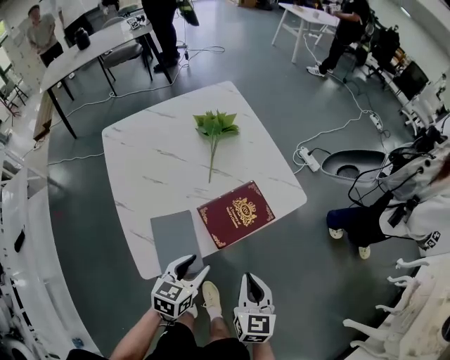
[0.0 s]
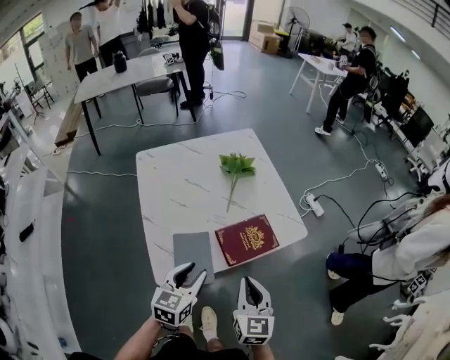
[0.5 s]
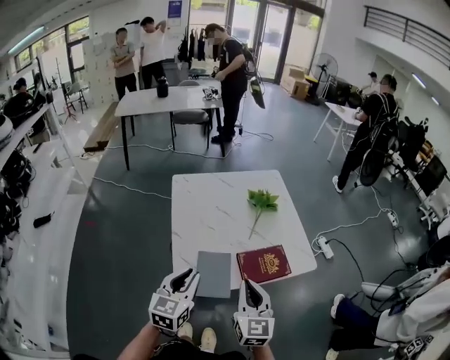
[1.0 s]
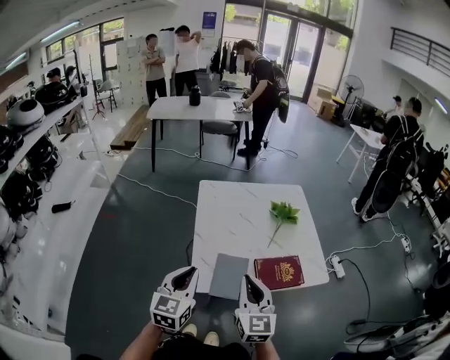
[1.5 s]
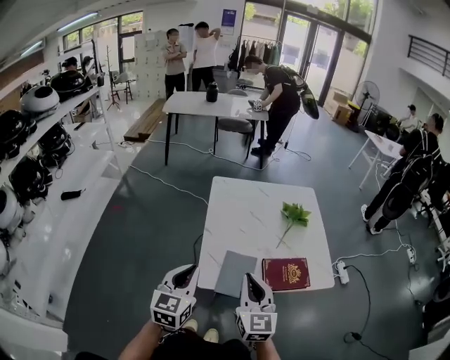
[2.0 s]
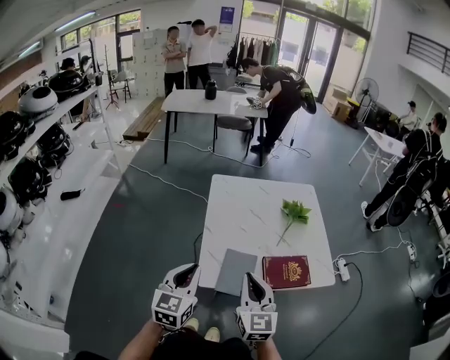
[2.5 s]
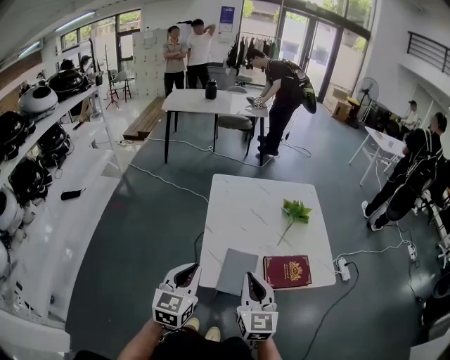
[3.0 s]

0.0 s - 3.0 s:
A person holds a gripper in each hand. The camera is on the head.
0.0 s - 1.5 s: The two grippers go about 25 cm upward. The left gripper swivels roughly 40 degrees, and closes its fingers. Meanwhile the right gripper rotates approximately 40 degrees.
1.5 s - 3.0 s: The grippers move only a little.

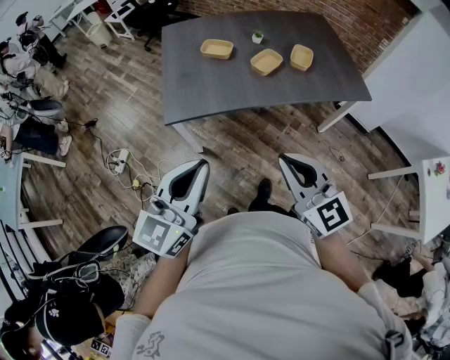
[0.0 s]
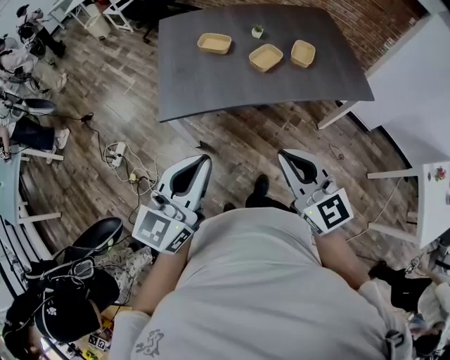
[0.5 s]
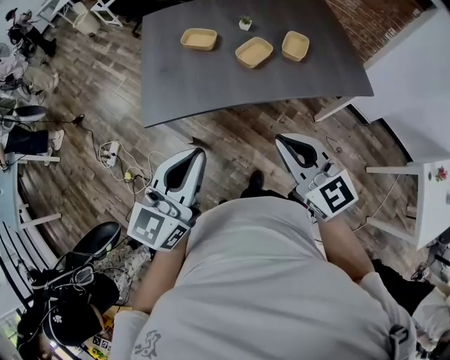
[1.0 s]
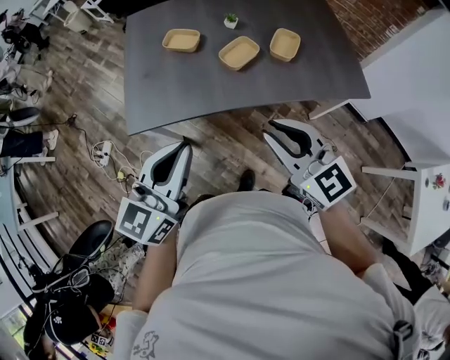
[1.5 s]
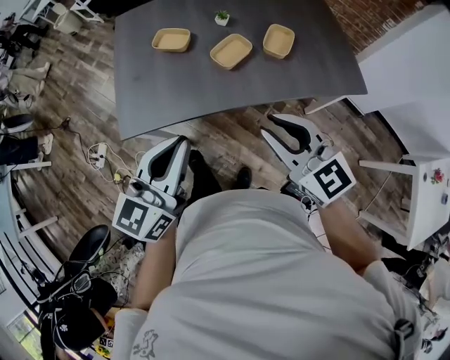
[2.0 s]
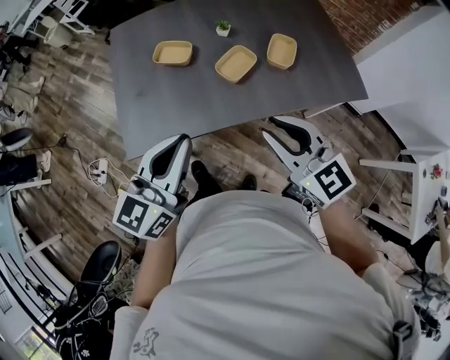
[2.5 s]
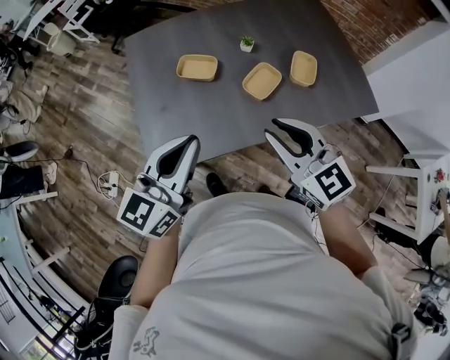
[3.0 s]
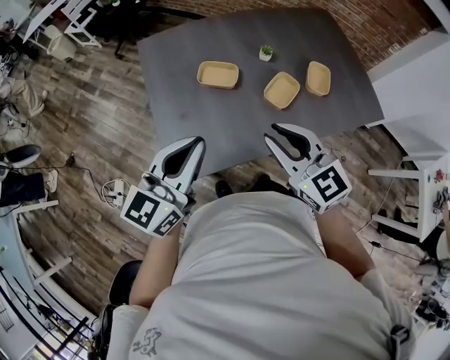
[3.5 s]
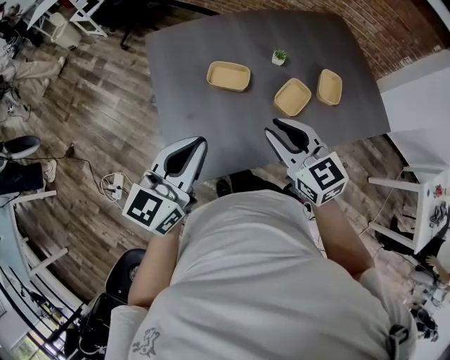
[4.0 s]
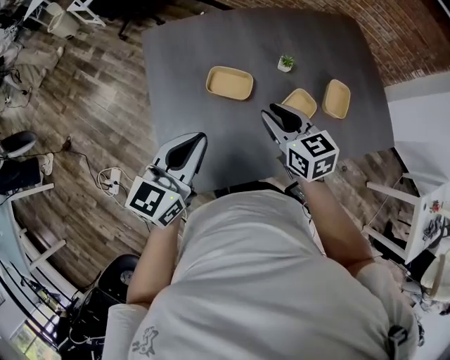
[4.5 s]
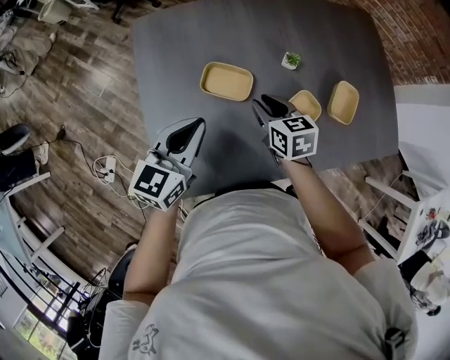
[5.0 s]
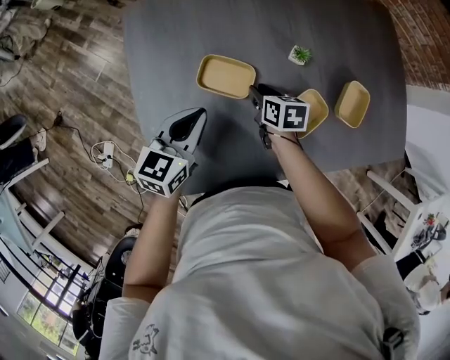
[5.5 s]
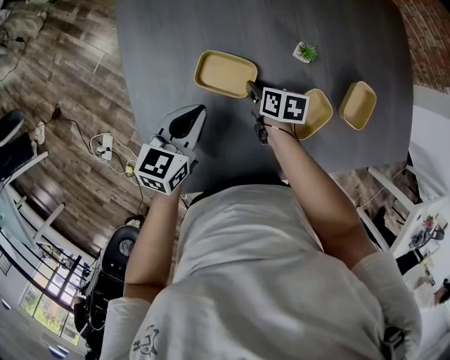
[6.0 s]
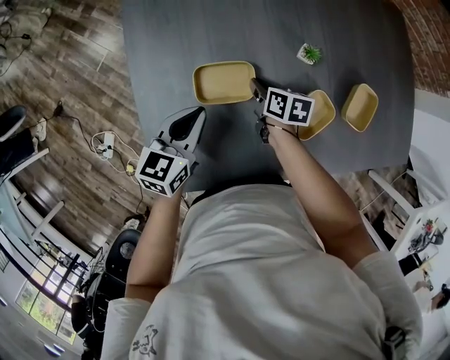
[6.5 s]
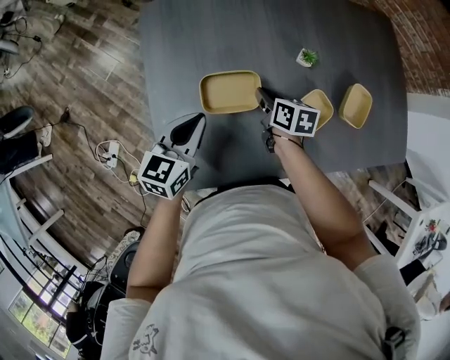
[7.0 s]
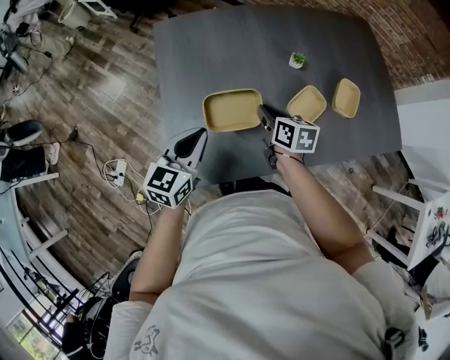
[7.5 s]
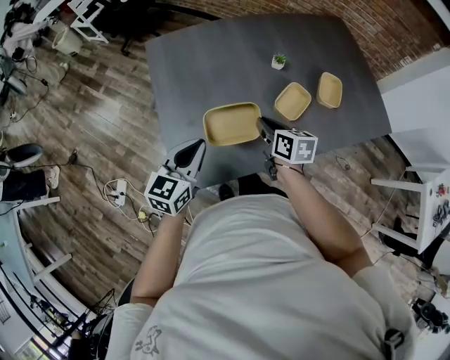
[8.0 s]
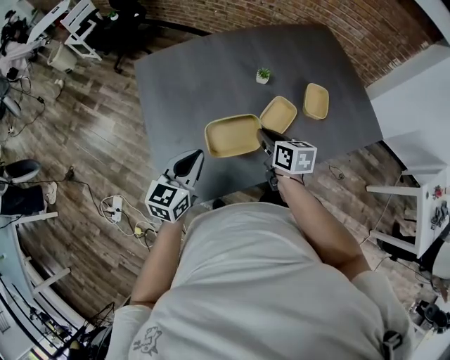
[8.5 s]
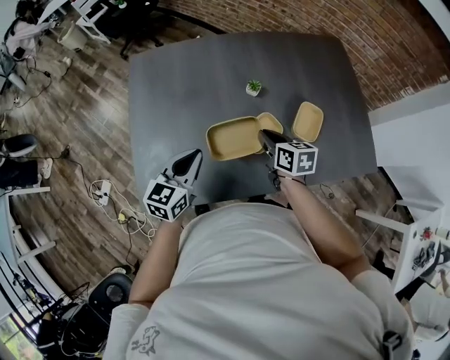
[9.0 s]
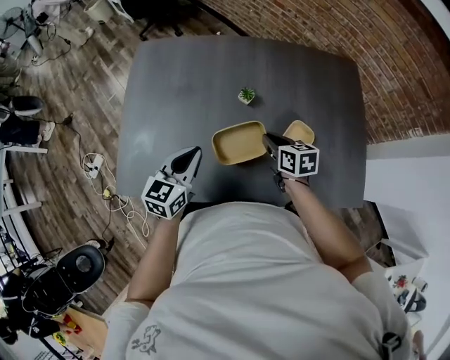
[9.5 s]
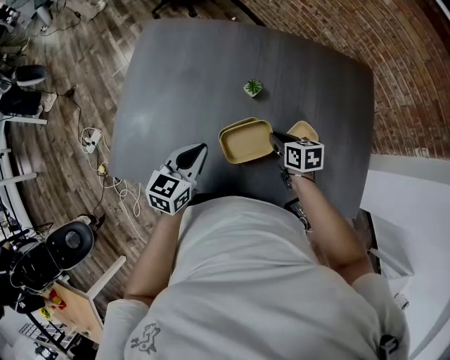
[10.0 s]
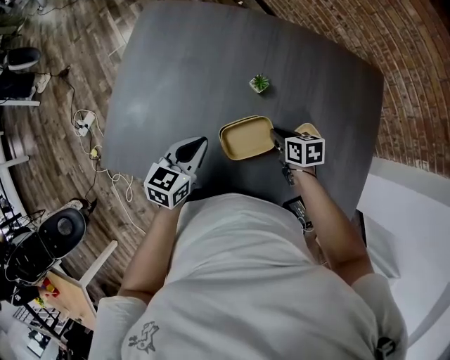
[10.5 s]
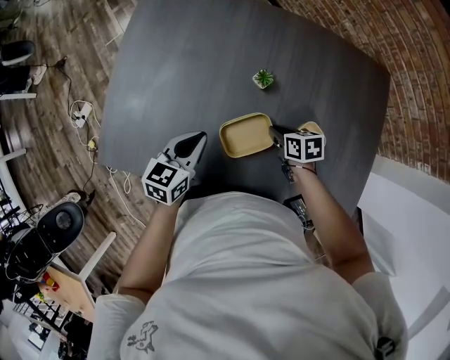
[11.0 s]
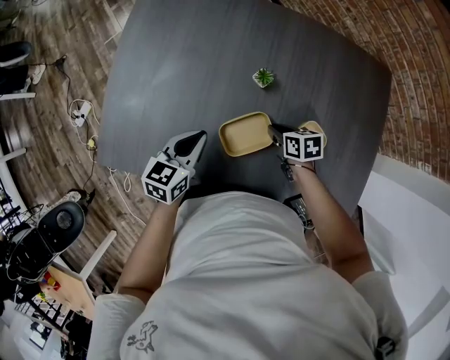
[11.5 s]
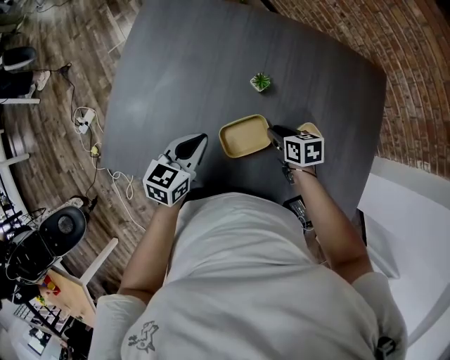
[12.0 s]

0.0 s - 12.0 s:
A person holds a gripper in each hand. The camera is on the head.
0.0 s - 2.0 s: Both grippers travel together forward and to the right, roughly 25 cm. The right gripper opens up.
2.0 s - 4.0 s: Both grippers travel together to the left and forward, about 30 cm.
4.0 s - 6.0 s: The two grippers go approximately 35 cm downward and forward. The left gripper rotates roughly 20 degrees. Meanwhile the right gripper rotates around the line of its fingers by approximately 50 degrees, clockwise from behind.
6.0 s - 8.0 s: Both grippers travel together backward and upward, approximately 25 cm. The right gripper changes its angle by some 20 degrees.
8.0 s - 10.0 s: The right gripper ends up approximately 30 cm from where it was, and changes its angle by roughly 30 degrees, while the left gripper moves approximately 30 cm, and turns by roughly 20 degrees.
10.0 s - 12.0 s: The right gripper moves approximately 5 cm, while the left gripper moves approximately 5 cm.

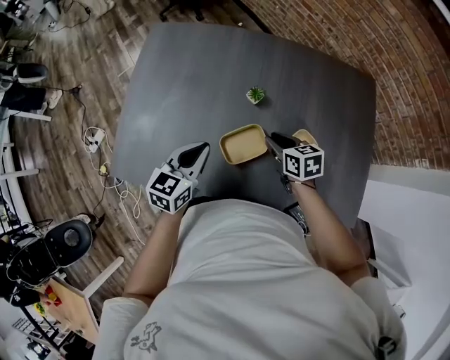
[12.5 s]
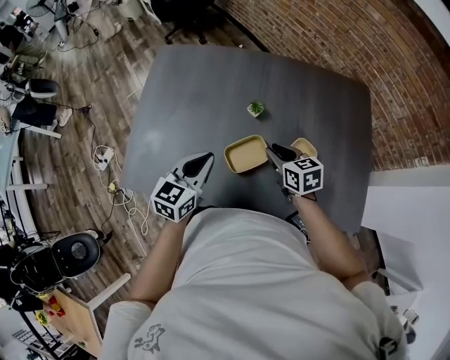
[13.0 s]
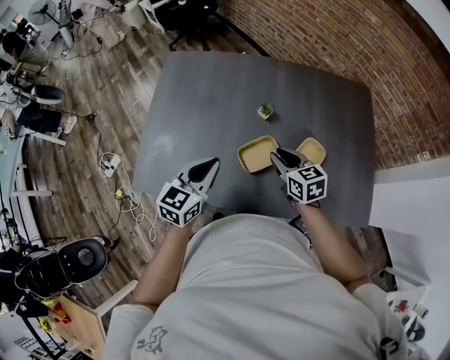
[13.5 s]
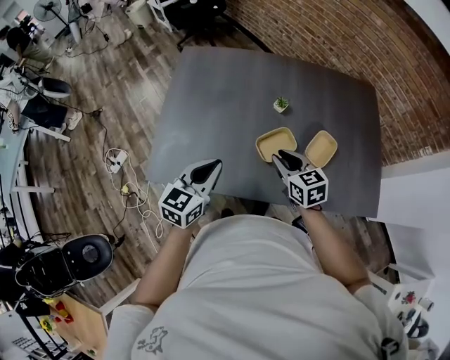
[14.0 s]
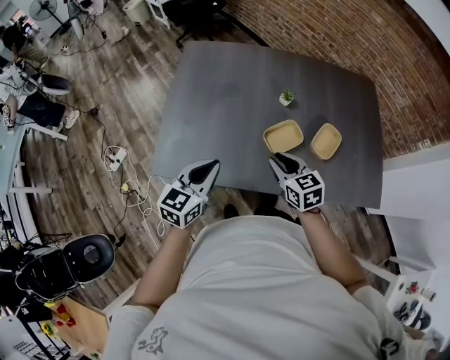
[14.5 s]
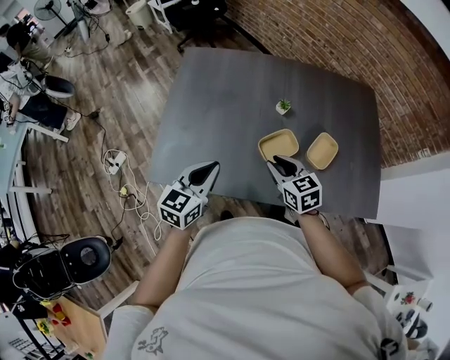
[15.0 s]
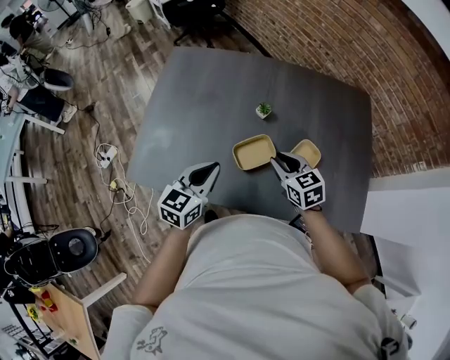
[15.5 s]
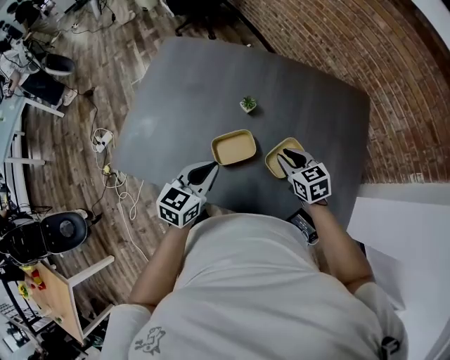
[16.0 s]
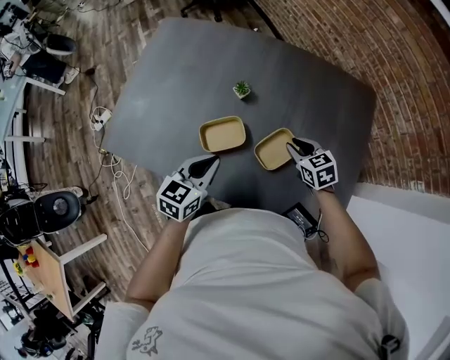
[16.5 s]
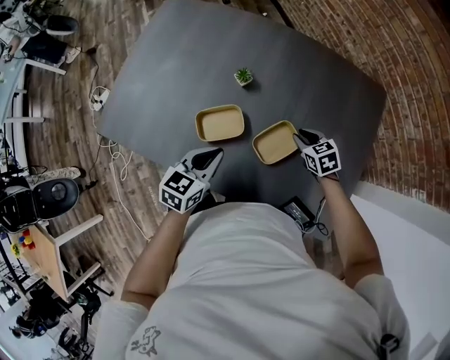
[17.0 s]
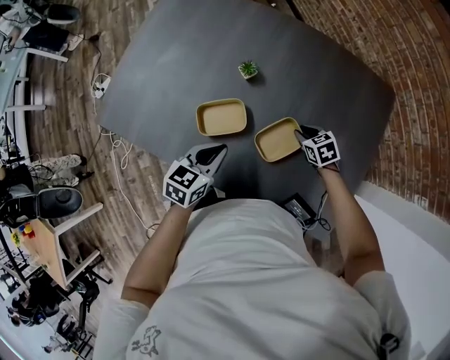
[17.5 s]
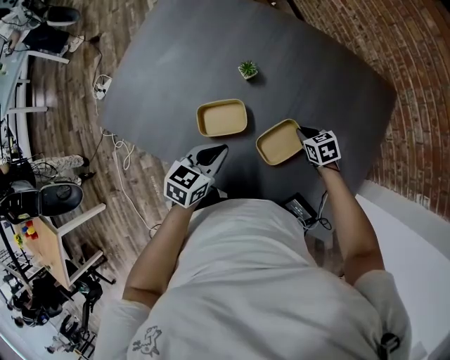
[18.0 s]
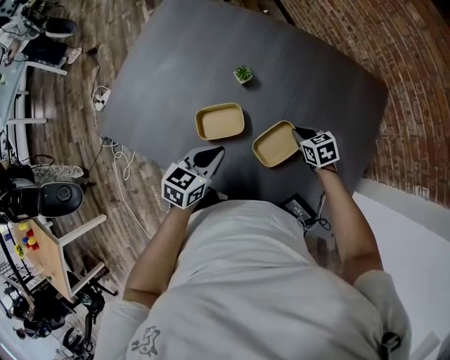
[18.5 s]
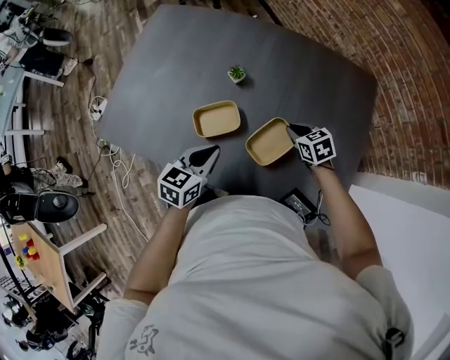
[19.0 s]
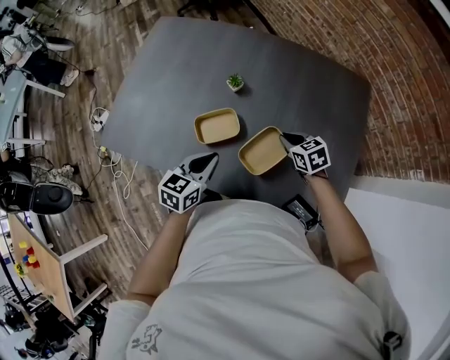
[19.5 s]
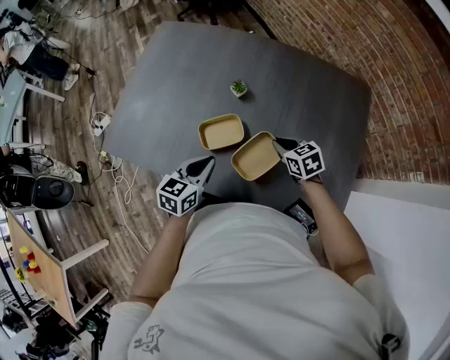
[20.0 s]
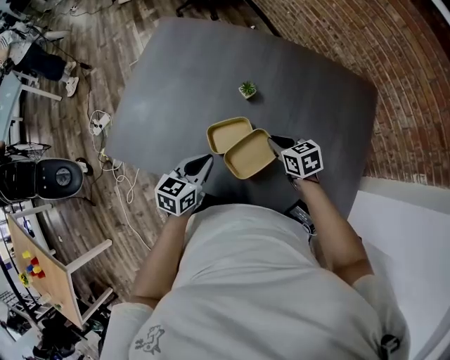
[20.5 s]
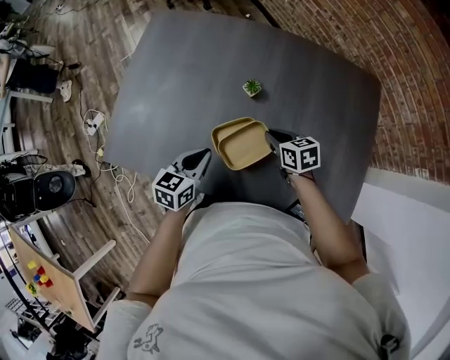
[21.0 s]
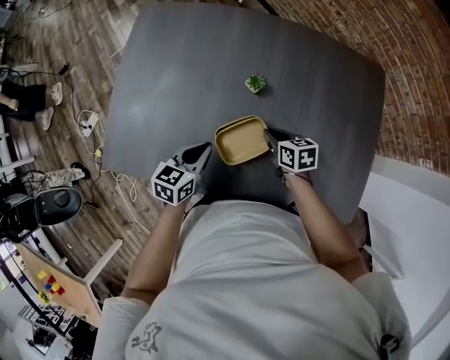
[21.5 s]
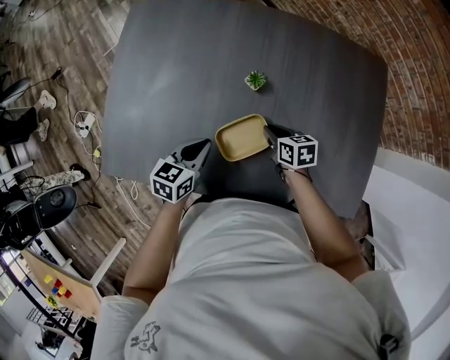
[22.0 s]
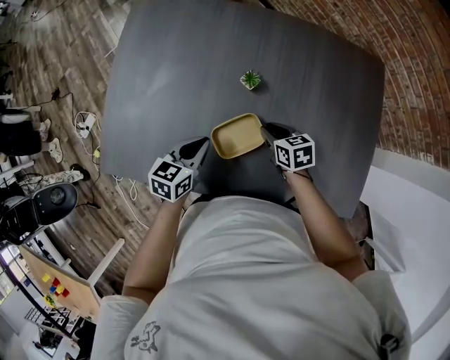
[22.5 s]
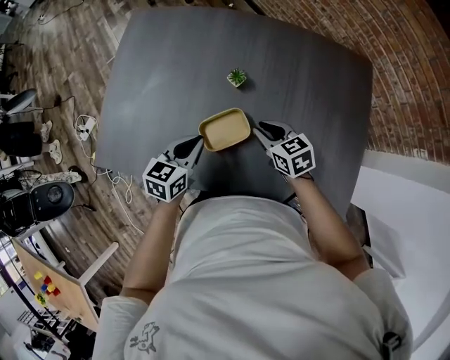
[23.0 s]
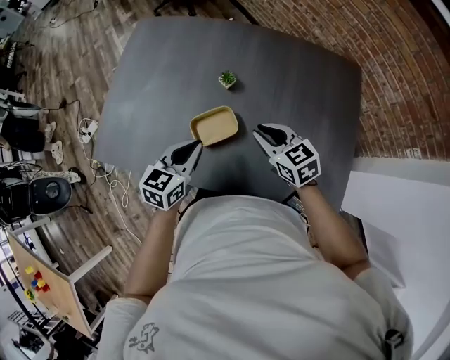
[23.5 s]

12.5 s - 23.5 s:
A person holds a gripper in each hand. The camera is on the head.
12.5 s - 14.5 s: The grippers both shift to the left, backward and upward by approximately 20 cm.
14.5 s - 16.0 s: The left gripper travels to the right by roughly 20 cm. The right gripper goes approximately 25 cm to the right and forward.
16.0 s - 18.0 s: The left gripper moves downward and to the right, roughly 15 cm. Meanwhile the right gripper shifts about 20 cm downward and to the right, and rotates roughly 20 degrees.
18.0 s - 20.0 s: The left gripper travels to the left by approximately 5 cm. The right gripper is displaced upward and to the left by some 15 cm.
20.0 s - 21.5 s: The left gripper shifts some 15 cm forward and to the left. Meanwhile the right gripper heads to the left and forward, covering approximately 10 cm, and turns by roughly 30 degrees.
21.5 s - 23.5 s: The left gripper is displaced upward, to the right and backward by approximately 15 cm; the right gripper goes some 15 cm upward and to the right, and changes its angle by approximately 30 degrees.
